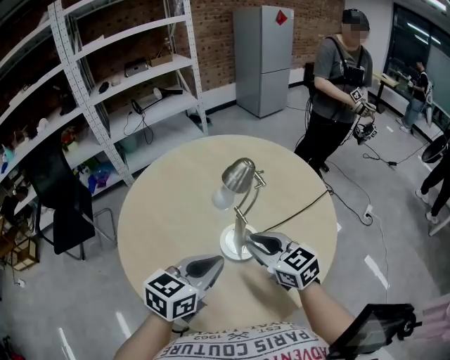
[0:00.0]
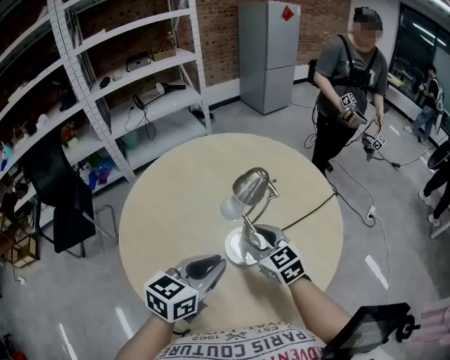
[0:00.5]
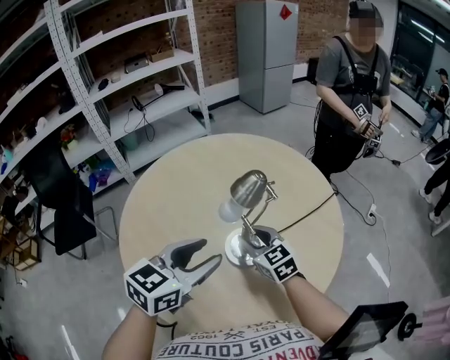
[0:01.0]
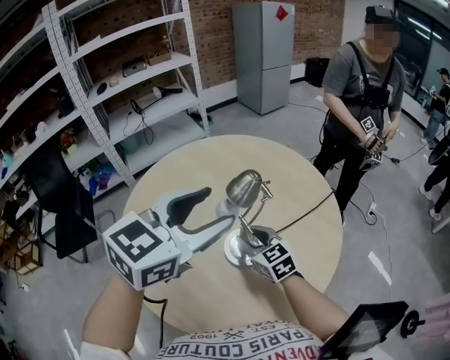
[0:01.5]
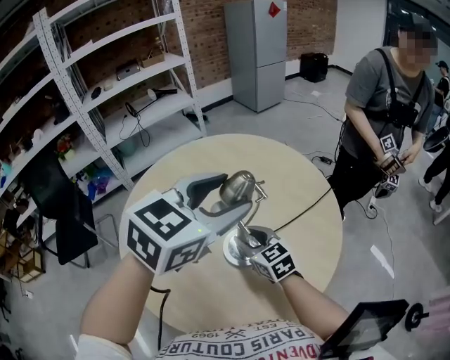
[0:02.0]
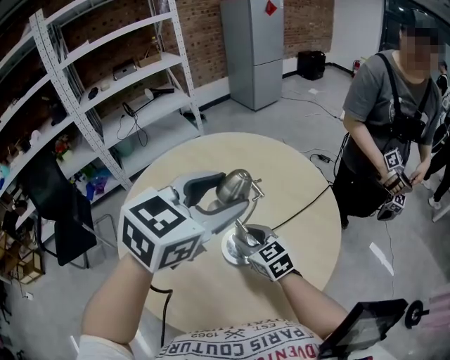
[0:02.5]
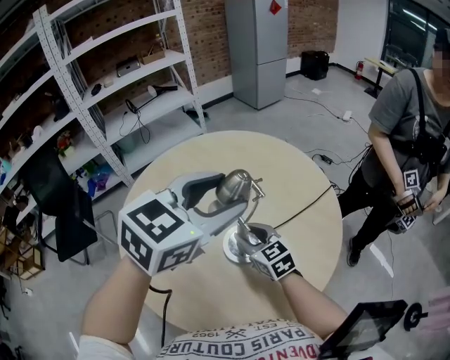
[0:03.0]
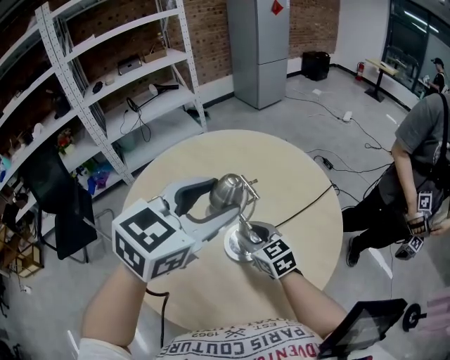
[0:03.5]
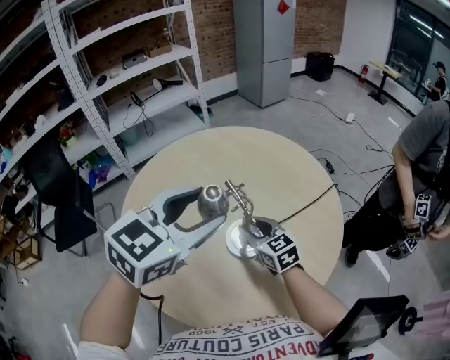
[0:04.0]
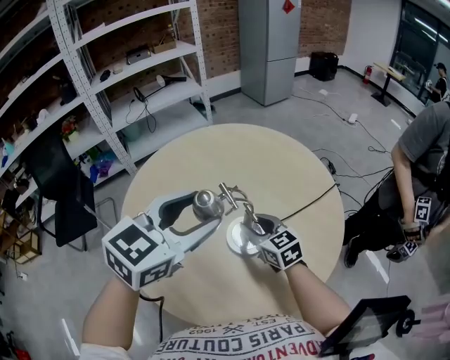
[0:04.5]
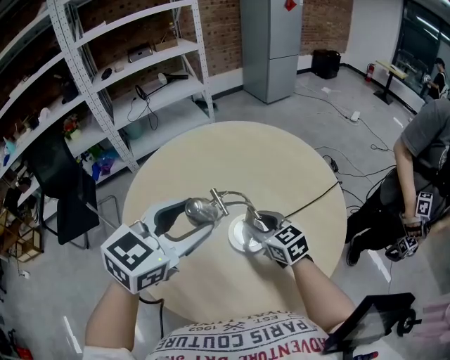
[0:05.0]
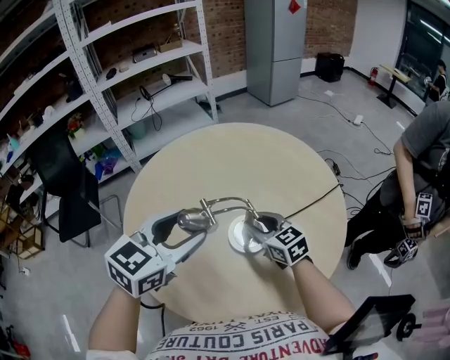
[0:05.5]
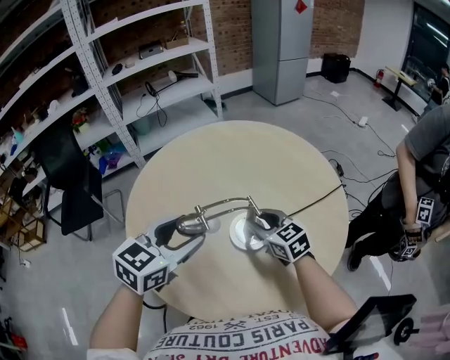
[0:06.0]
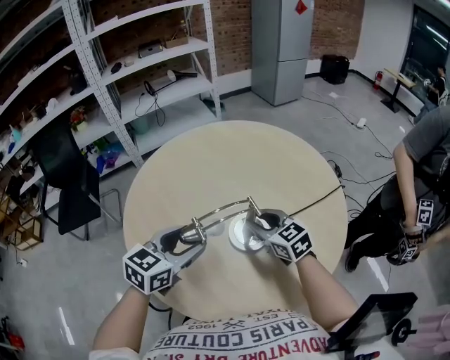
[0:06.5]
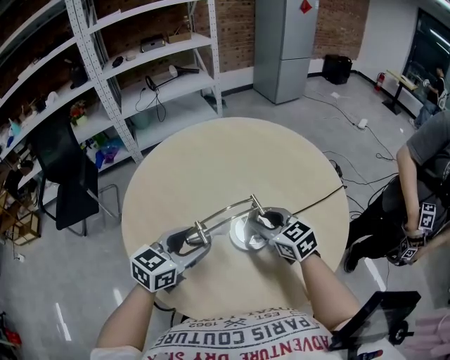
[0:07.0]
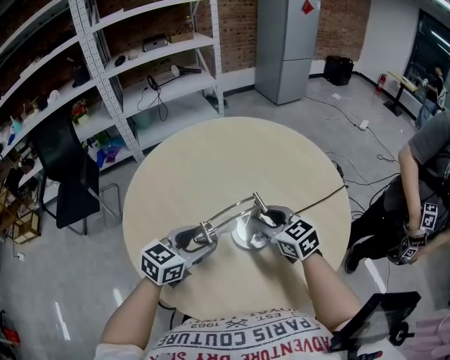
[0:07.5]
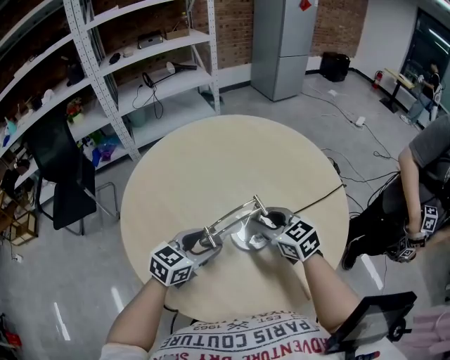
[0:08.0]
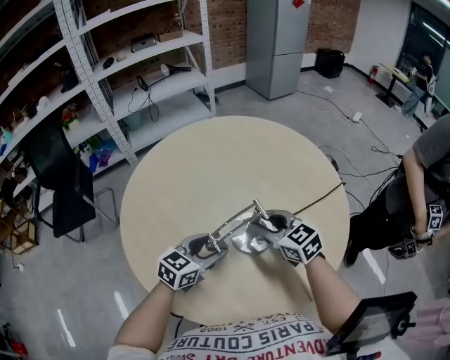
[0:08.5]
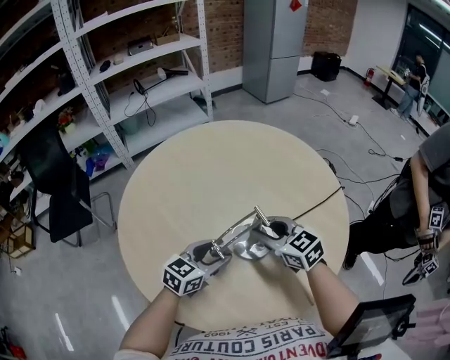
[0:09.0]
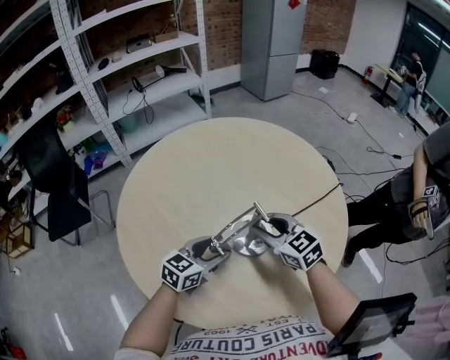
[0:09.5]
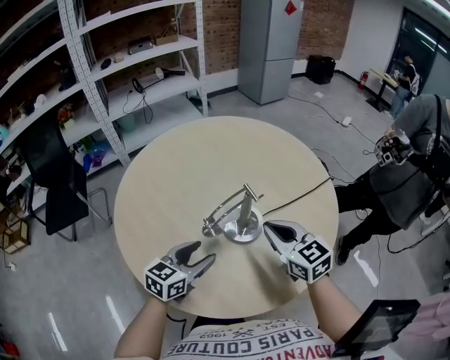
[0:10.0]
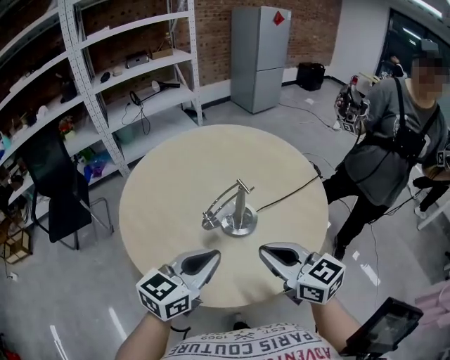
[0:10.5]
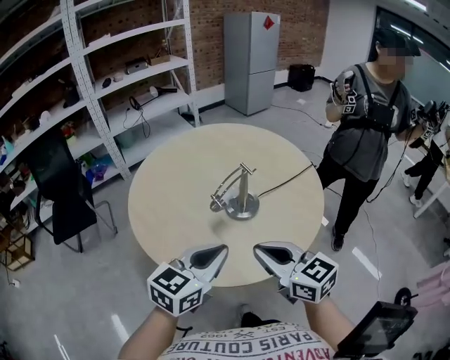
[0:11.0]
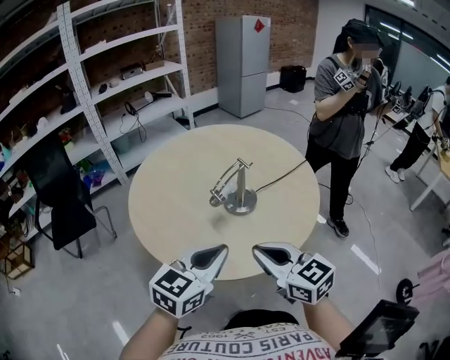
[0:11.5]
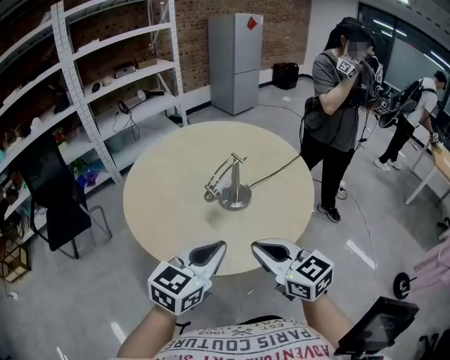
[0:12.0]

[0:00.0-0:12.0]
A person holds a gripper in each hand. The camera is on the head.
0:00.0 to 0:02.0: The right gripper moves forward and downward, roughly 10 cm, while the left gripper heads upward and forward, covering about 20 cm, turns by approximately 20 degrees, and opens.
0:02.0 to 0:04.0: The left gripper shifts approximately 5 cm to the left.
0:04.0 to 0:06.0: The left gripper moves downward and to the left, about 15 cm.
0:06.0 to 0:08.0: The left gripper shifts approximately 15 cm downward.
0:08.0 to 0:10.0: The two grippers go about 5 cm backward. The right gripper closes.
0:10.0 to 0:12.0: The right gripper is displaced backward by approximately 25 cm. Meanwhile the left gripper moves backward and upward, some 25 cm, and closes its fingers.

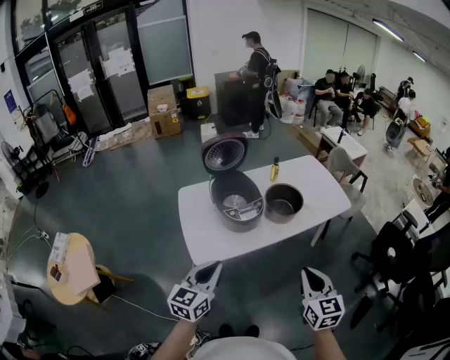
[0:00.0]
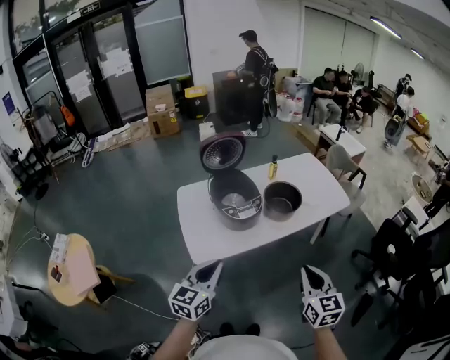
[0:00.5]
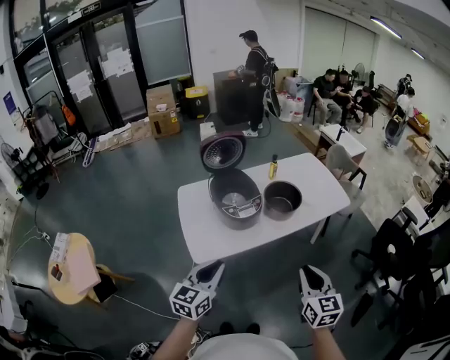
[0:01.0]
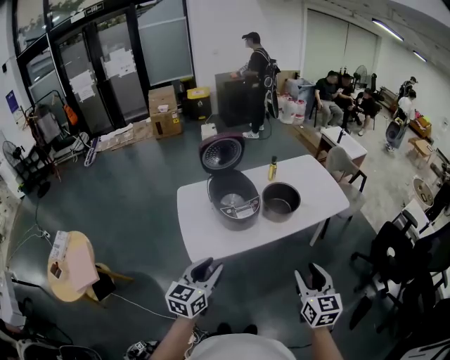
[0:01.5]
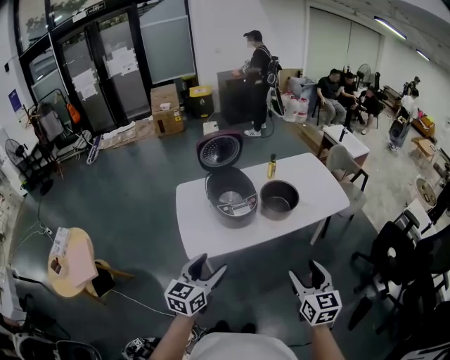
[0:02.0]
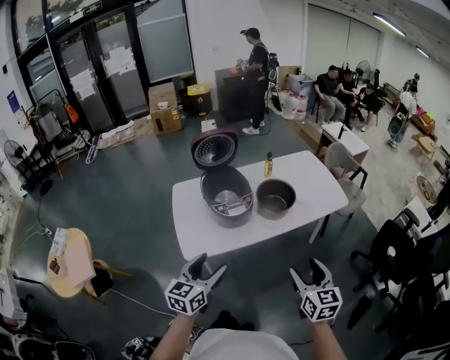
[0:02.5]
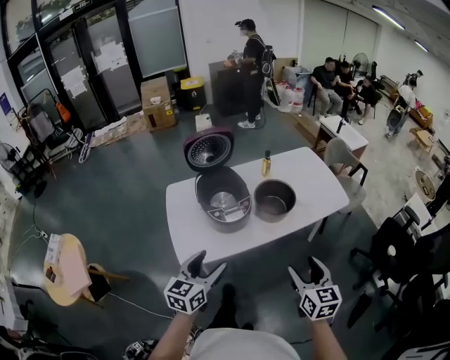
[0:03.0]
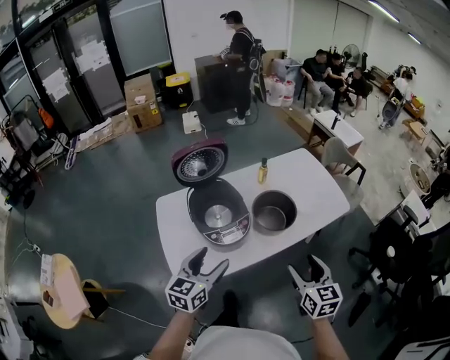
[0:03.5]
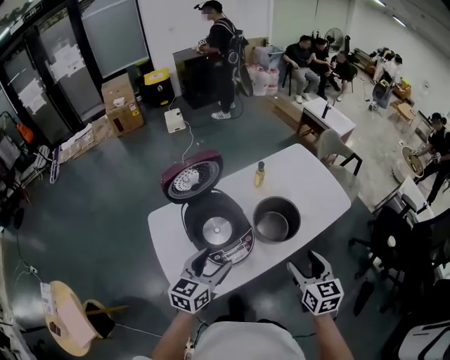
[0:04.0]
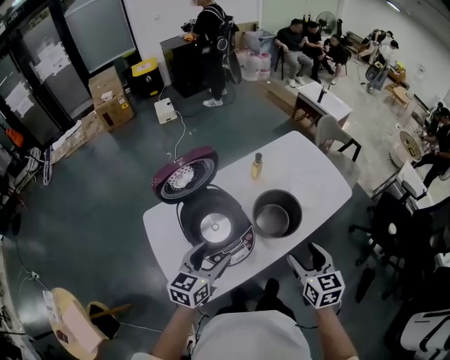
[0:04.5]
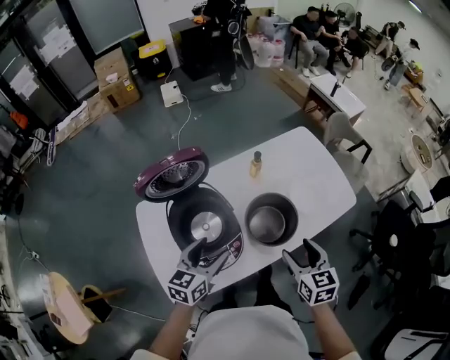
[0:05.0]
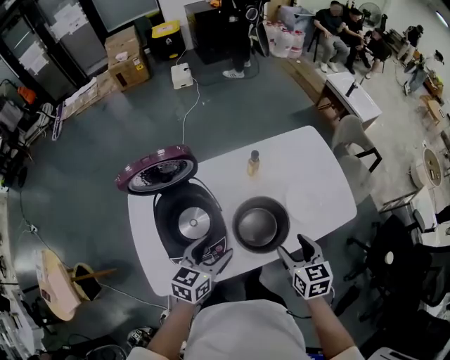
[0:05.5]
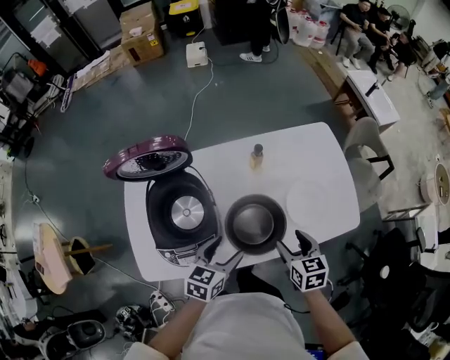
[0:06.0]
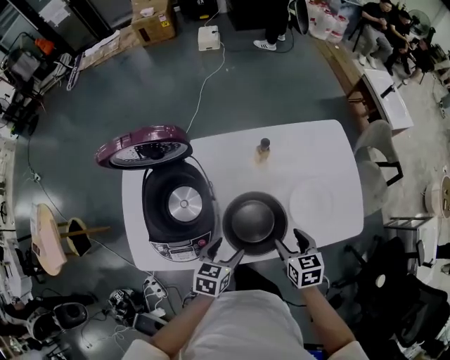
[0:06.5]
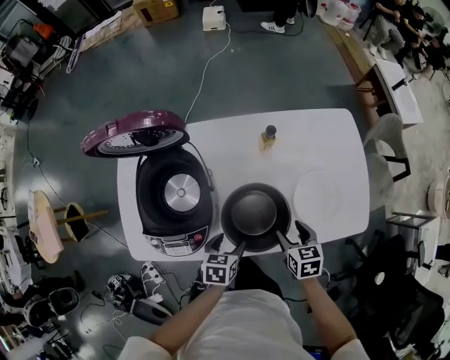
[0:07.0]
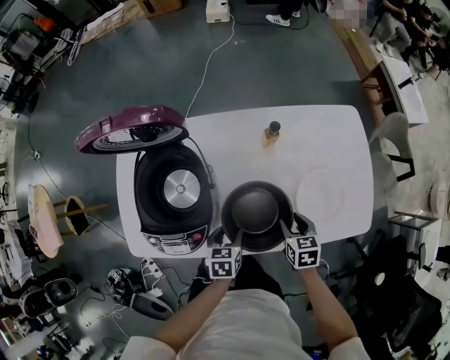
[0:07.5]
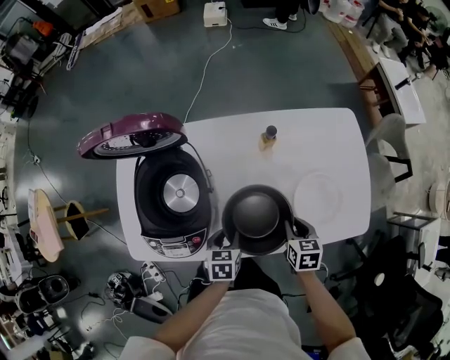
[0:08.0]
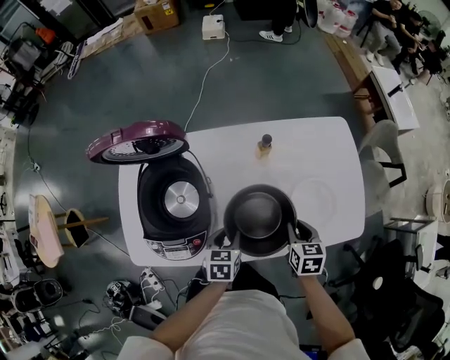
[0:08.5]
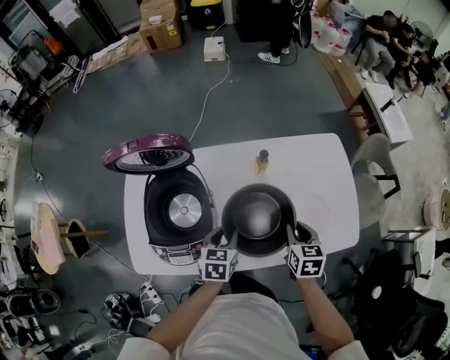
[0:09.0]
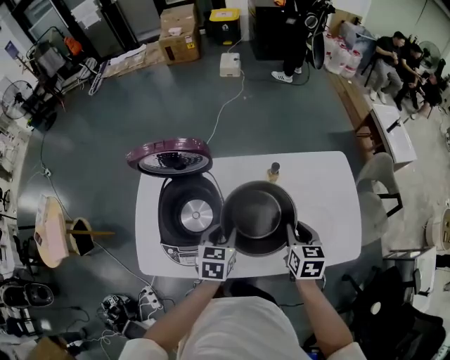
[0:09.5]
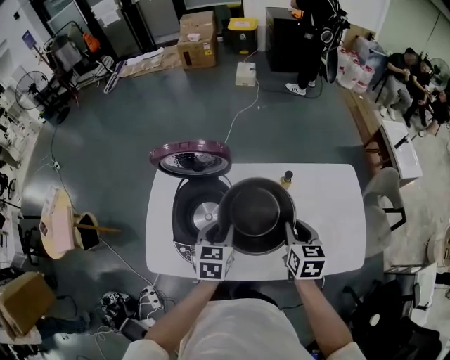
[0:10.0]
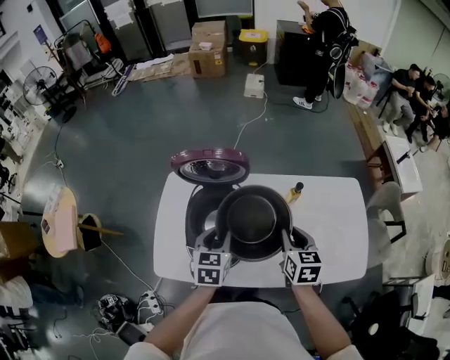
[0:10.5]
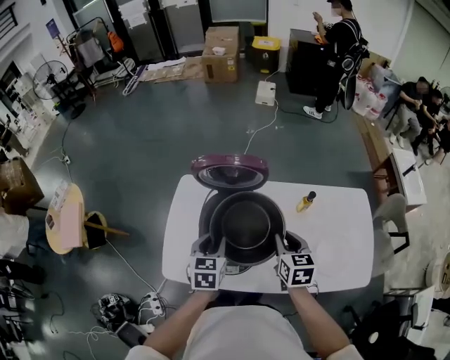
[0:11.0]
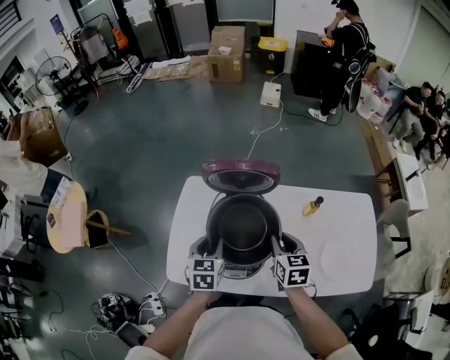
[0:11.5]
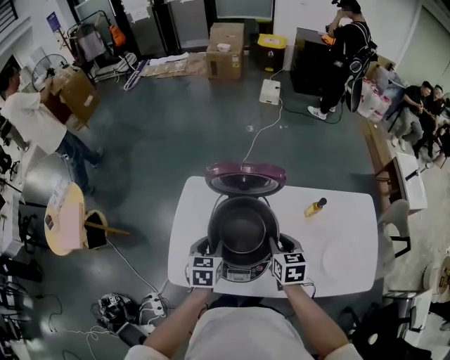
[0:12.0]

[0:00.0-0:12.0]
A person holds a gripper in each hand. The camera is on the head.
0:00.0 to 0:02.0: The right gripper opens its fingers. Meanwhile the left gripper opens up.
0:02.0 to 0:04.0: Both grippers travel together forward, approximately 30 cm.
0:04.0 to 0:06.0: The right gripper is displaced forward, downward and to the right by roughly 30 cm, and swivels roughly 30 degrees. The left gripper travels to the right, forward and downward by about 25 cm, and swivels some 20 degrees.
0:06.0 to 0:08.0: The two grippers go some 15 cm downward. The right gripper closes. Meanwhile the left gripper swivels some 30 degrees, and closes.
0:08.0 to 0:10.0: The right gripper shifts approximately 20 cm upward; the left gripper heads upward and to the left, covering some 20 cm, and changes its angle by roughly 20 degrees.
0:10.0 to 0:12.0: The grippers both shift to the left by approximately 20 cm.

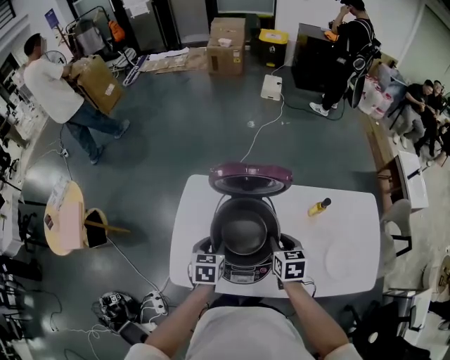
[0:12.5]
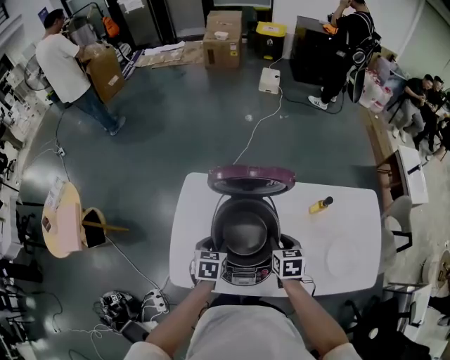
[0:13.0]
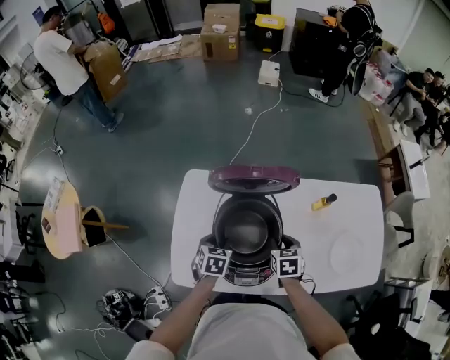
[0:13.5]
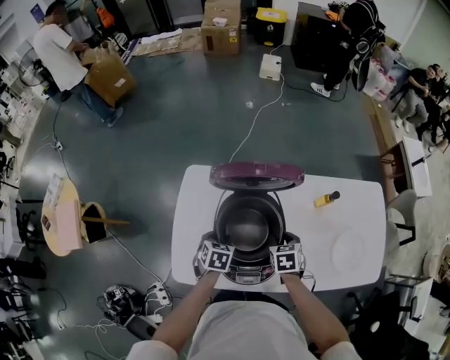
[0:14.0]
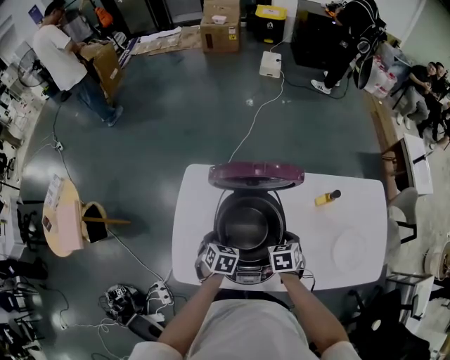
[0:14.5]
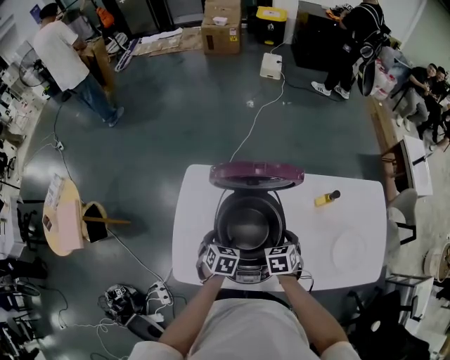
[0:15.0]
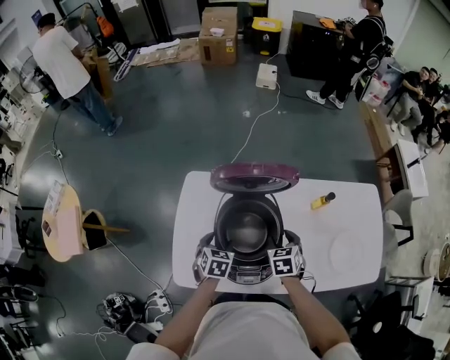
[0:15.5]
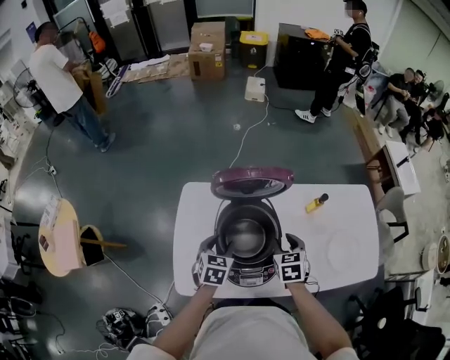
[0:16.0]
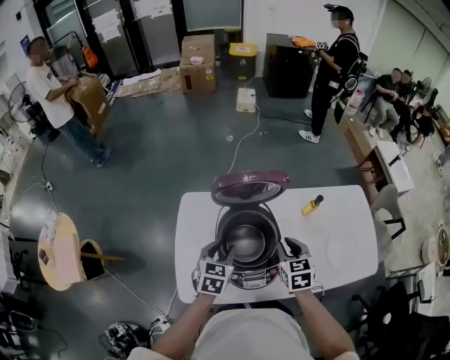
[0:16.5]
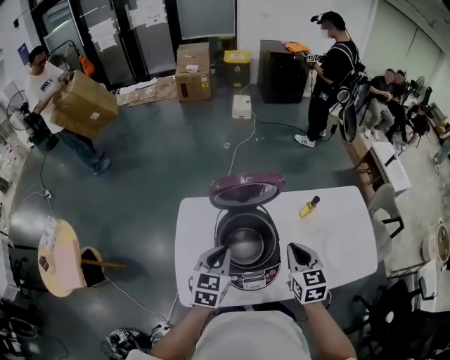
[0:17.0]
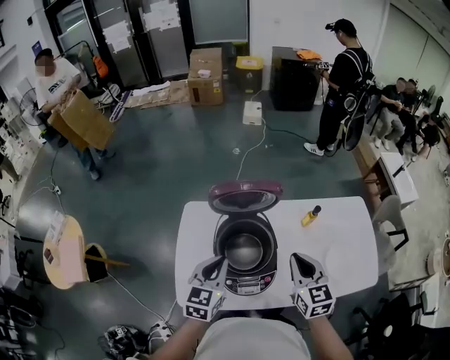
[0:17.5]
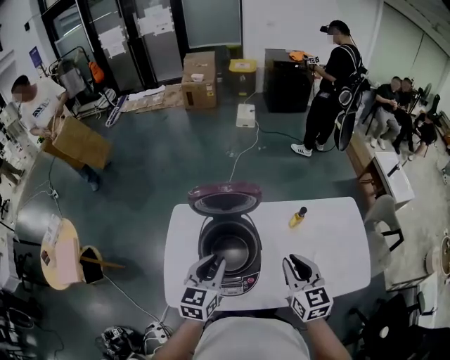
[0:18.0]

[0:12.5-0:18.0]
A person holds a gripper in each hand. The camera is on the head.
0:12.5 to 0:14.5: The two grippers go roughly 10 cm downward. The left gripper rotates some 20 degrees.
0:14.5 to 0:16.0: The grippers both shift upward by about 10 cm.
0:16.0 to 0:18.0: The two grippers go about 20 cm upward and to the right. The left gripper rotates about 30 degrees, and closes; the right gripper rotates approximately 30 degrees.
